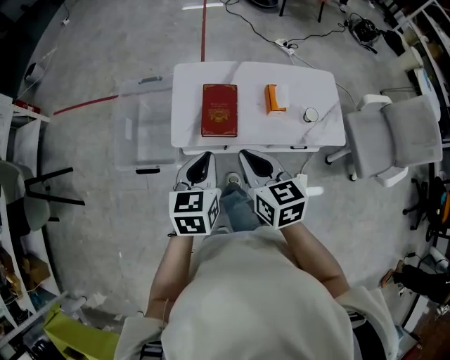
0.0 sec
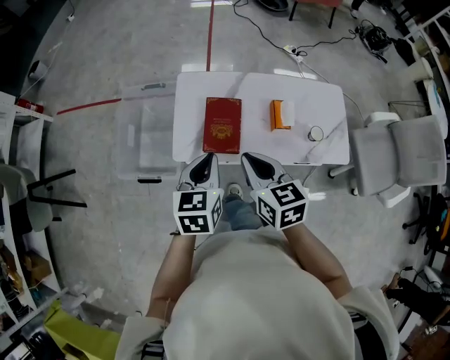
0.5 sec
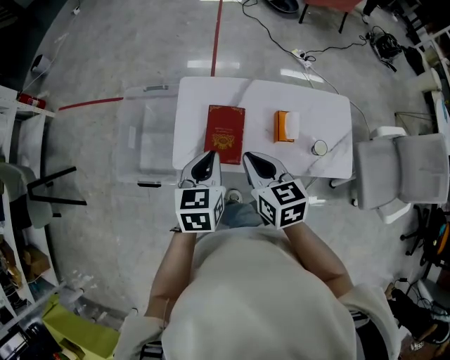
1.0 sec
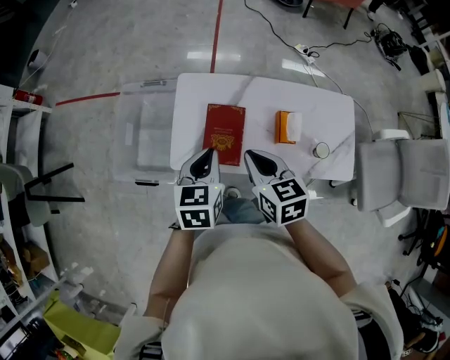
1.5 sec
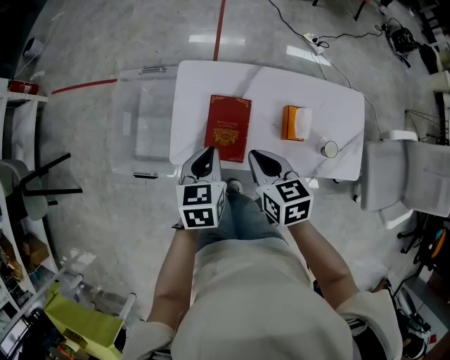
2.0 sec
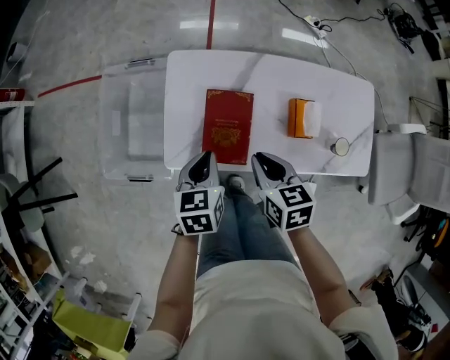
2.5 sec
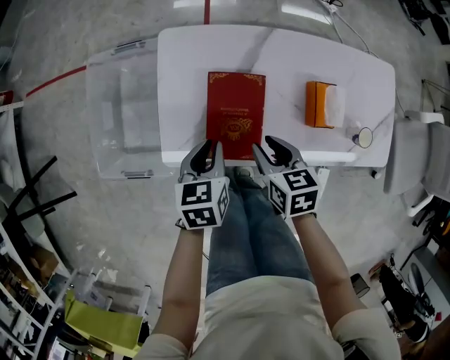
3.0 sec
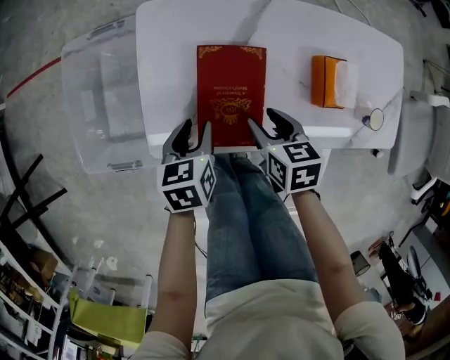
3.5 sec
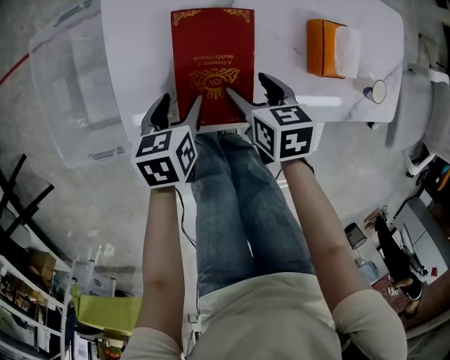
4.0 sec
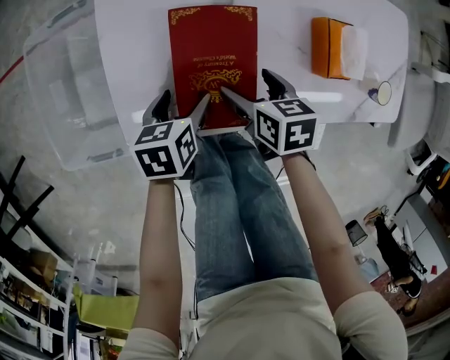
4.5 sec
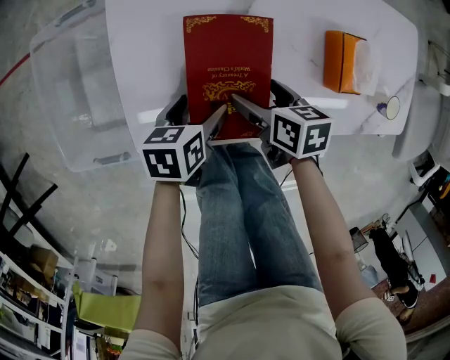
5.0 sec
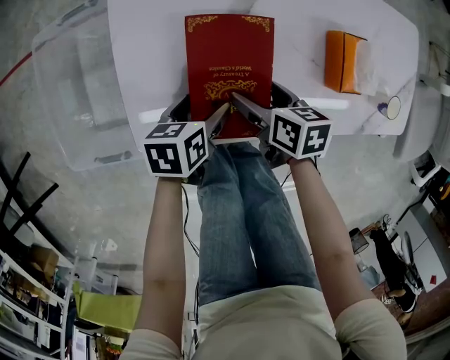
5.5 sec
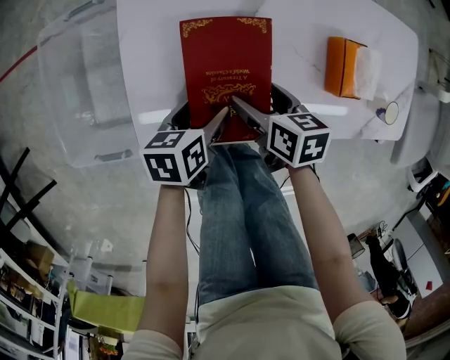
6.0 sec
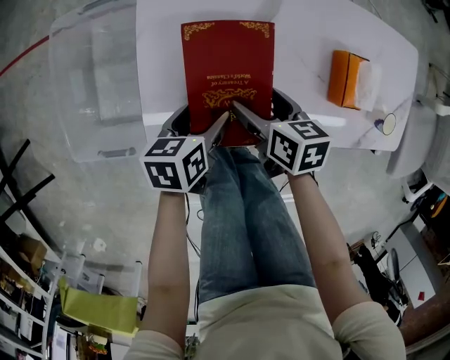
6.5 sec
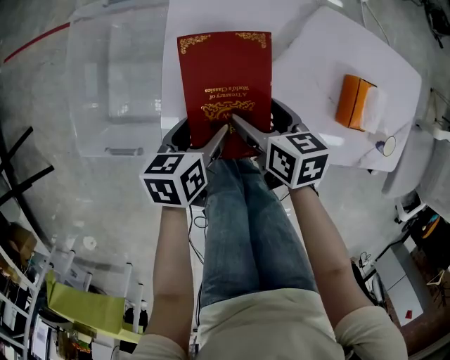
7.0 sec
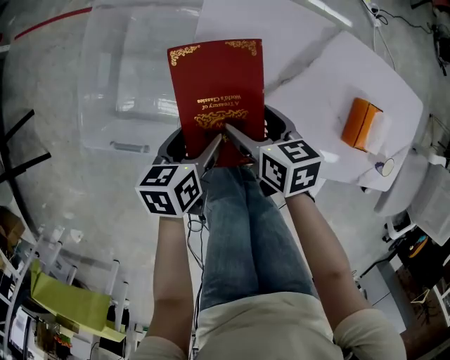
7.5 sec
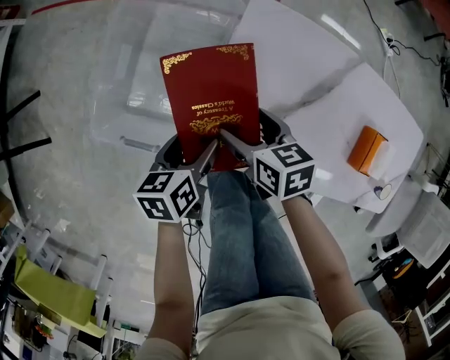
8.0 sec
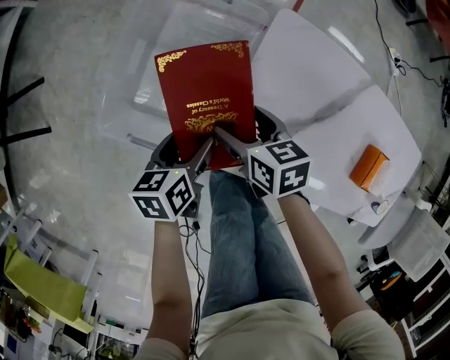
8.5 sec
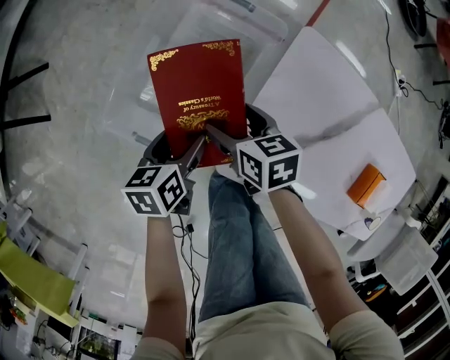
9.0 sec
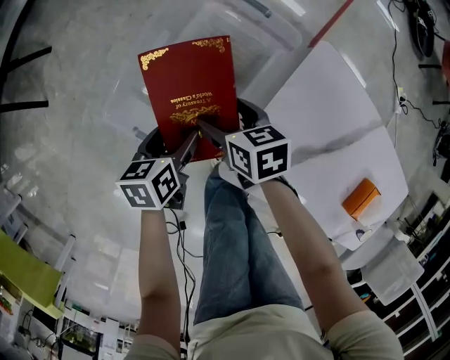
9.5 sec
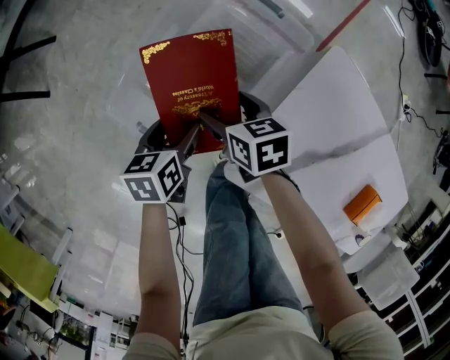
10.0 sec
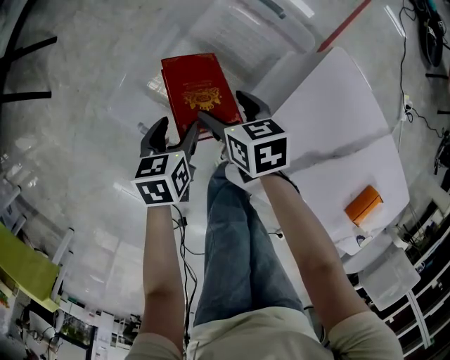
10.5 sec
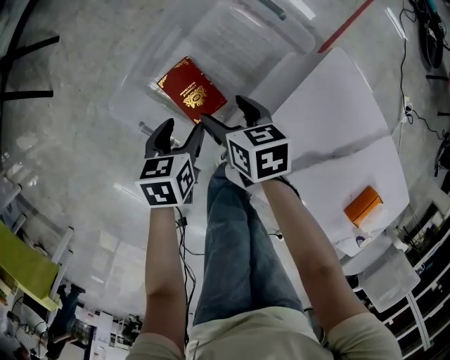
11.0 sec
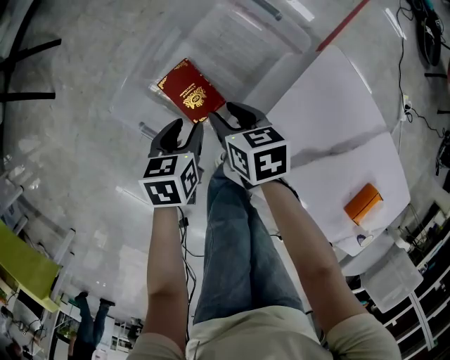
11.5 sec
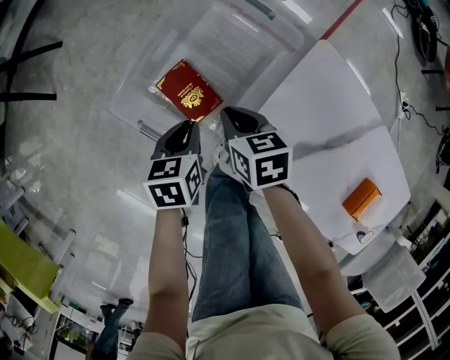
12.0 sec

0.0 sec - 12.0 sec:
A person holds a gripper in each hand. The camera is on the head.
0.0 sec - 2.0 sec: The grippers both shift forward and downward by some 25 cm.
2.0 sec - 4.0 sec: The two grippers go some 30 cm downward. The left gripper rotates roughly 20 degrees, and opens, while the right gripper turns by about 20 degrees, and opens its fingers.
4.0 sec - 6.0 sec: The grippers make only small movements.
6.0 sec - 8.0 sec: The left gripper shifts by approximately 20 cm, and turns by about 30 degrees; the right gripper shifts by roughly 25 cm, and turns by roughly 30 degrees.
8.0 sec - 10.0 sec: The two grippers go roughly 20 cm to the left and forward. The right gripper turns by some 20 degrees.
10.0 sec - 12.0 sec: The left gripper shifts by about 5 cm, and closes. The right gripper ends up approximately 5 cm from where it was, and closes up.

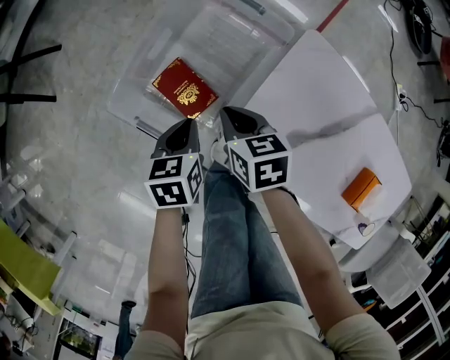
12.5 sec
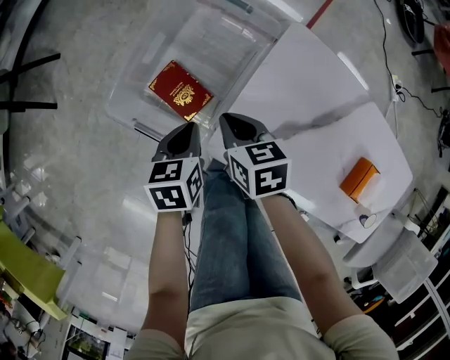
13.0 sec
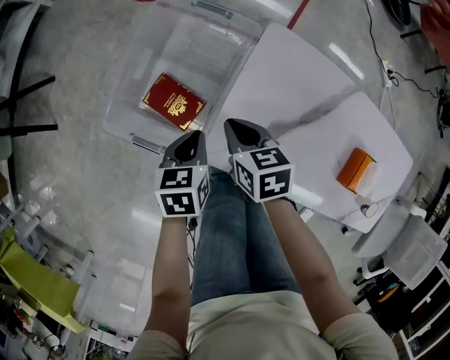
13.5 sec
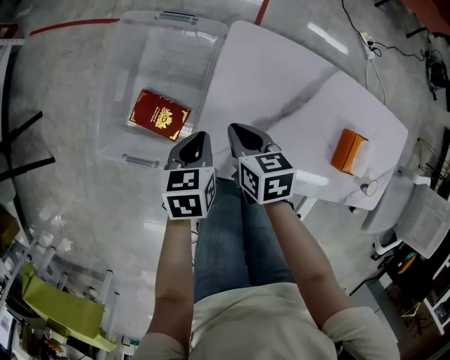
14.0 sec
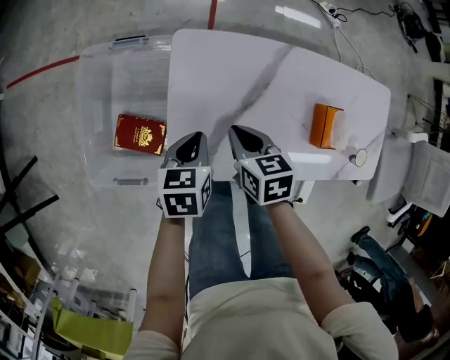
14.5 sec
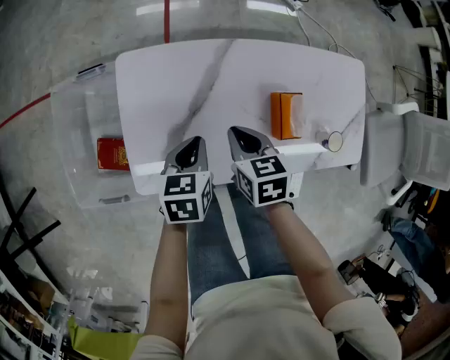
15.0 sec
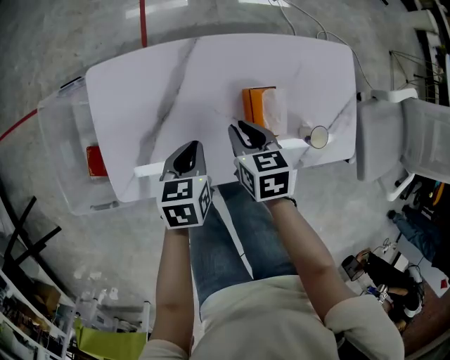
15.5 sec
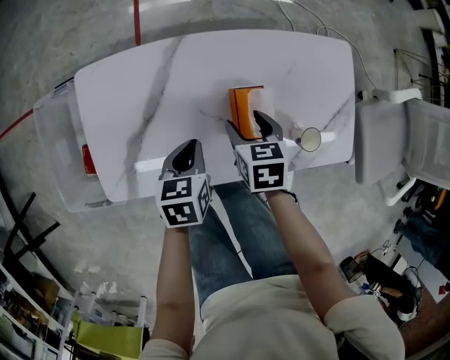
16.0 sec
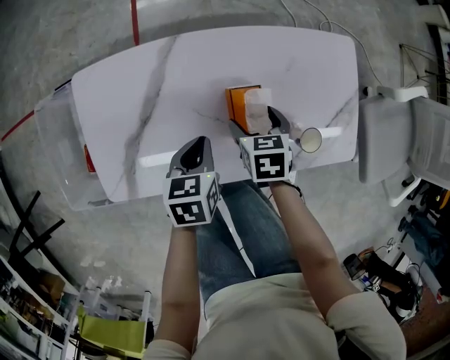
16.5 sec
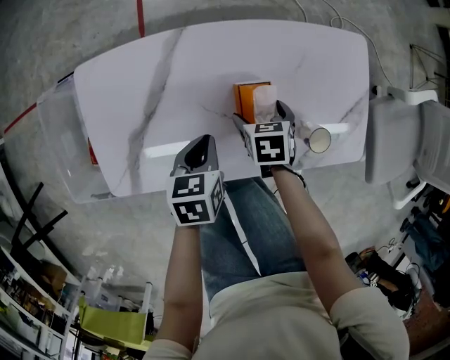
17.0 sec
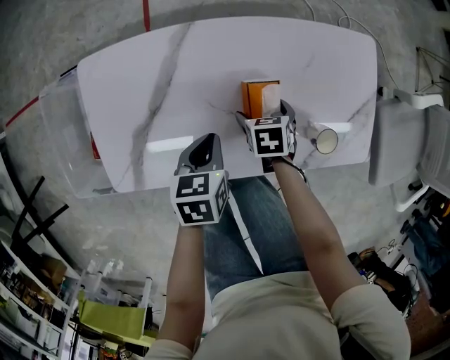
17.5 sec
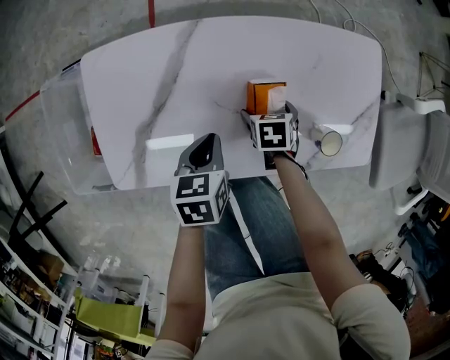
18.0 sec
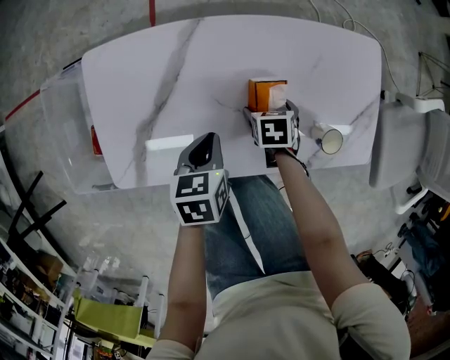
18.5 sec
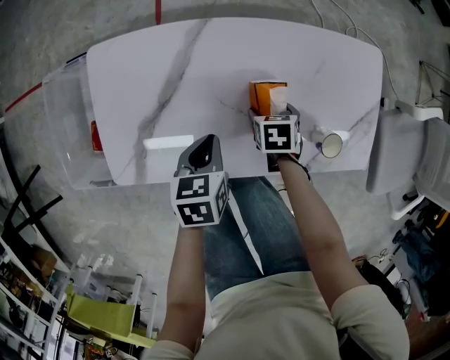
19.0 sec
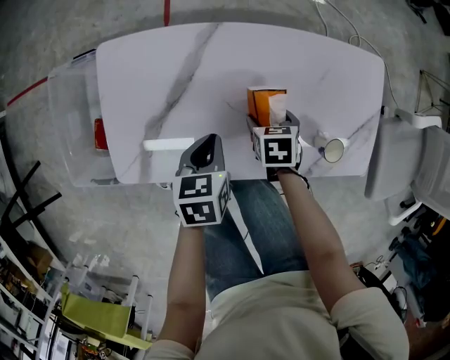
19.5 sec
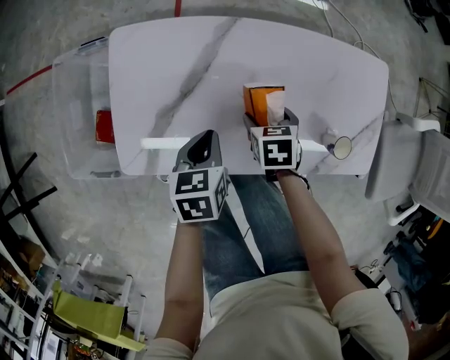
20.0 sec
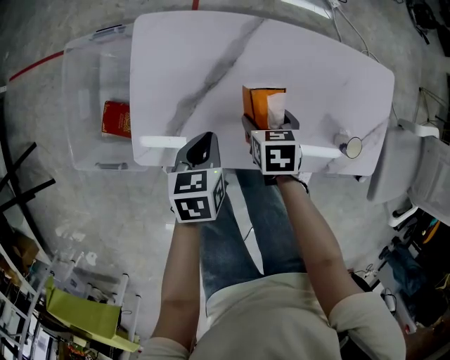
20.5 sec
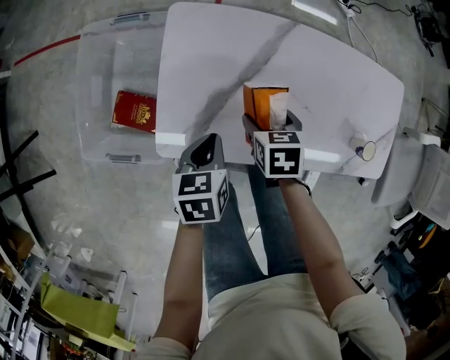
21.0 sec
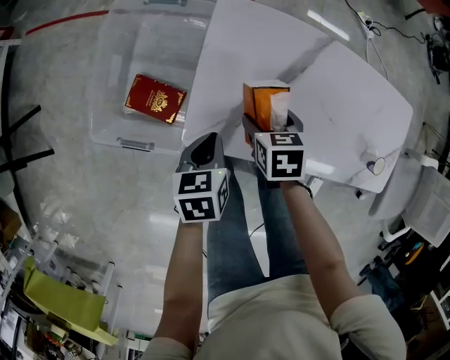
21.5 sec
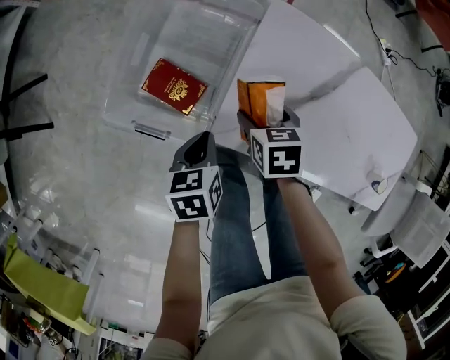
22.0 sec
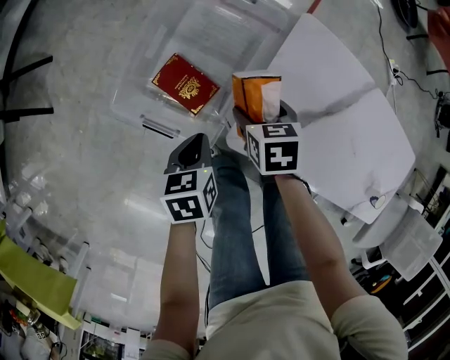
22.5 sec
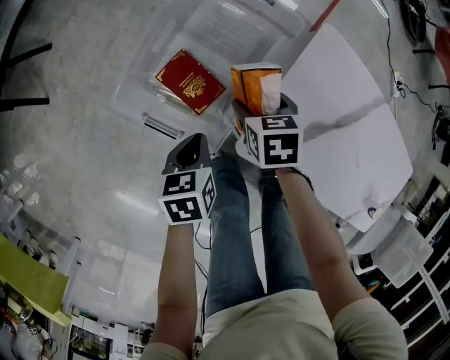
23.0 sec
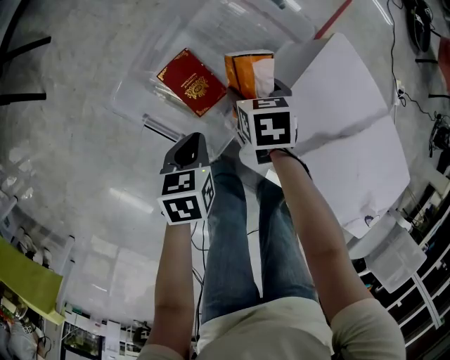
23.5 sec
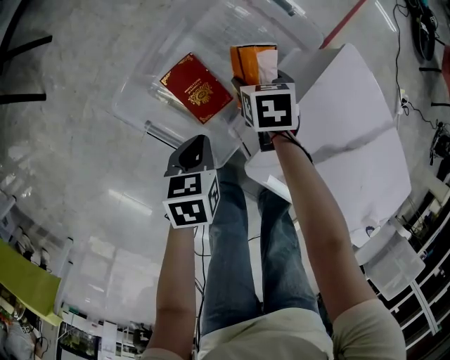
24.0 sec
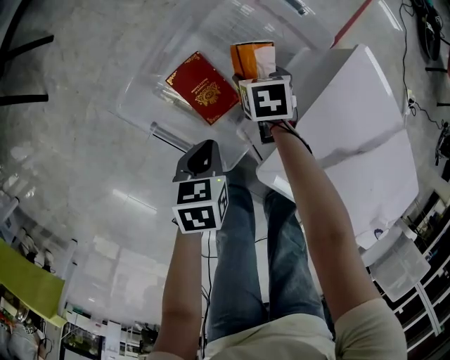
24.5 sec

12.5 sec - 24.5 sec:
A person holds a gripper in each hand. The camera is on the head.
12.5 sec - 14.5 sec: The left gripper changes place by some 25 cm, and swivels some 40 degrees; the right gripper changes place by about 25 cm, and changes its angle by some 30 degrees.
14.5 sec - 16.5 sec: The grippers both shift to the right by some 35 cm. The right gripper opens.
16.5 sec - 18.5 sec: The right gripper shifts approximately 10 cm downward.
18.5 sec - 20.5 sec: The right gripper changes place by roughly 20 cm. Meanwhile the left gripper changes place by some 15 cm.
20.5 sec - 22.5 sec: The left gripper changes place by about 35 cm, and changes its angle by some 30 degrees; the right gripper moves roughly 40 cm, and rotates approximately 30 degrees.
22.5 sec - 24.5 sec: The right gripper shifts approximately 20 cm downward, forward and to the left. Meanwhile the left gripper shifts approximately 10 cm downward and to the left.

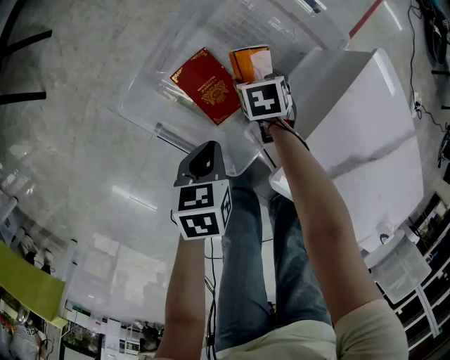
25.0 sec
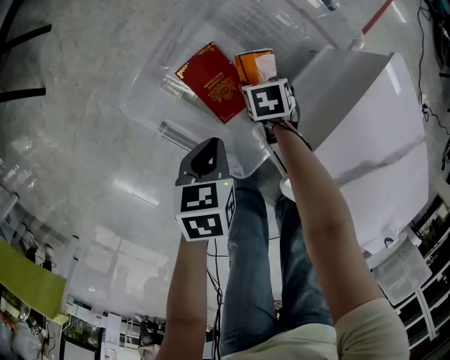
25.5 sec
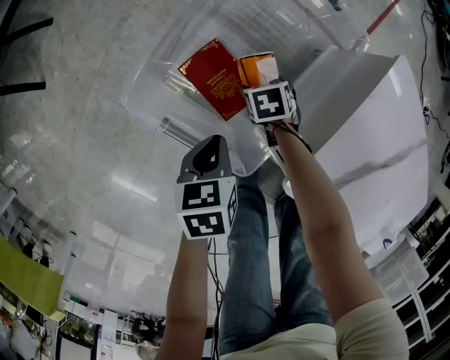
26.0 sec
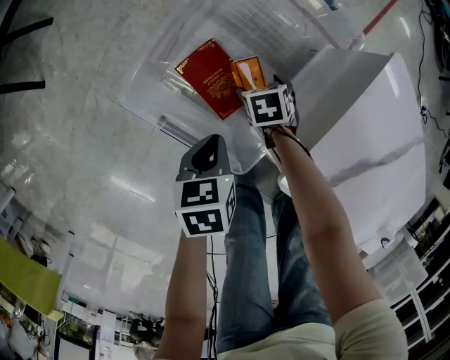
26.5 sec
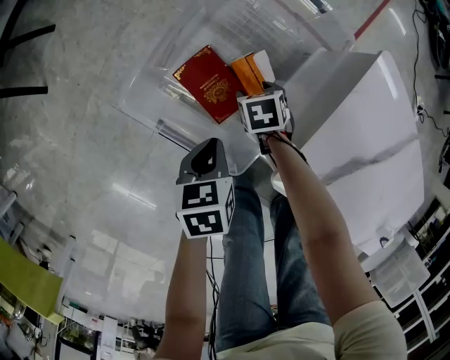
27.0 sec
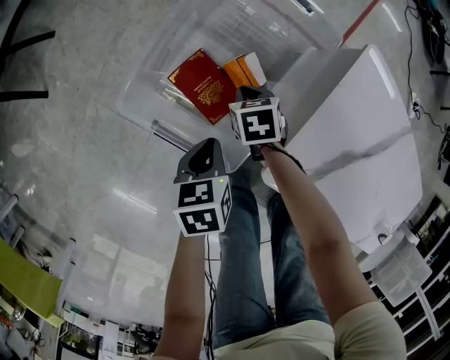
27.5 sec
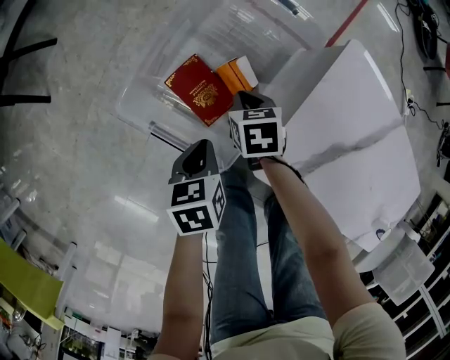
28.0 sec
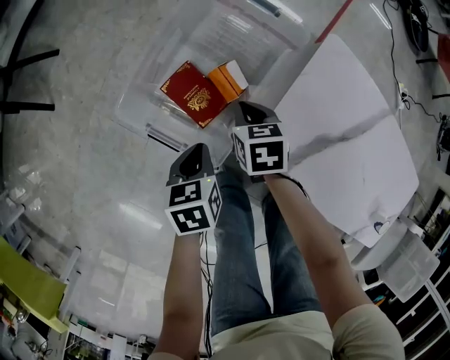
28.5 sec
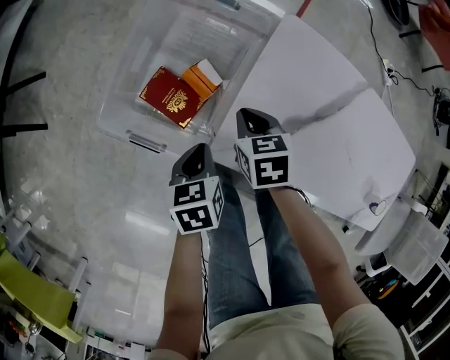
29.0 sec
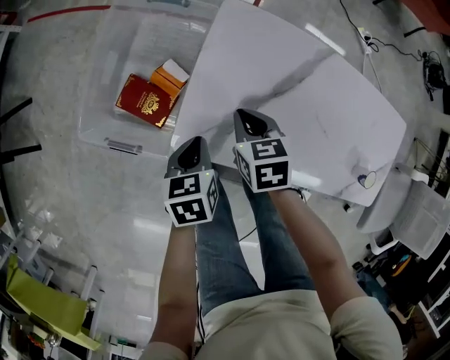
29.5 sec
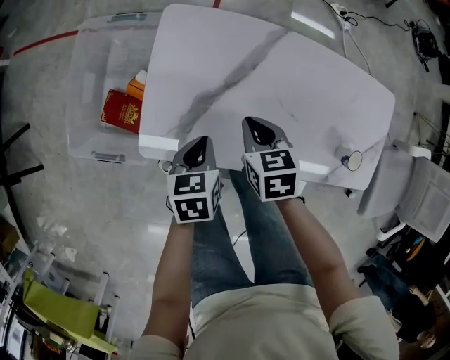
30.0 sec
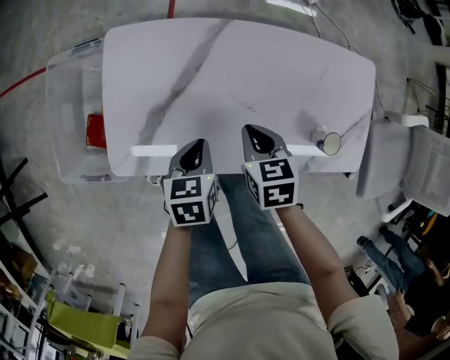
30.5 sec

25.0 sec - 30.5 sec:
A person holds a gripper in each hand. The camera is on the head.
27.0 sec - 28.5 sec: The left gripper shifts roughly 10 cm upward. Meanwhile the right gripper is displaced upward by roughly 20 cm, and closes up.
28.5 sec - 30.5 sec: The two grippers travel together, some 50 cm. The right gripper rotates roughly 30 degrees. Meanwhile the left gripper swivels roughly 40 degrees.
